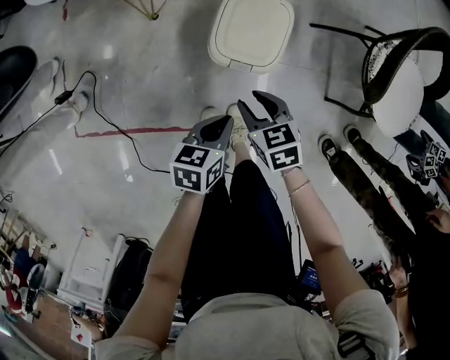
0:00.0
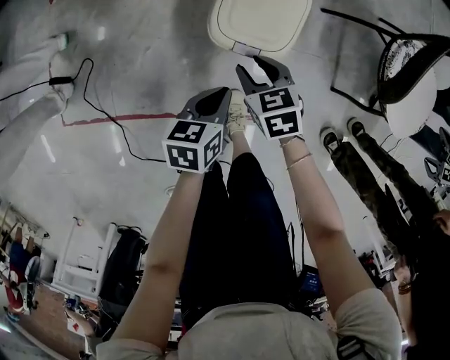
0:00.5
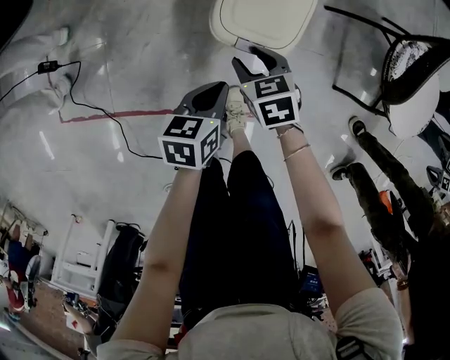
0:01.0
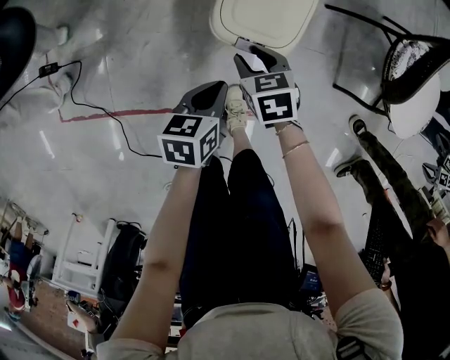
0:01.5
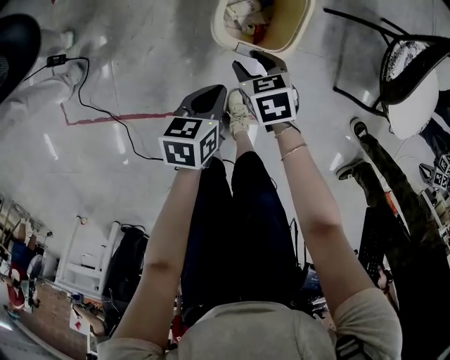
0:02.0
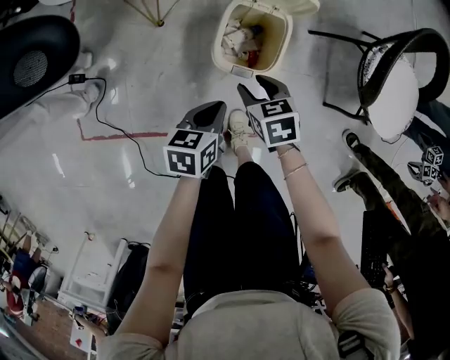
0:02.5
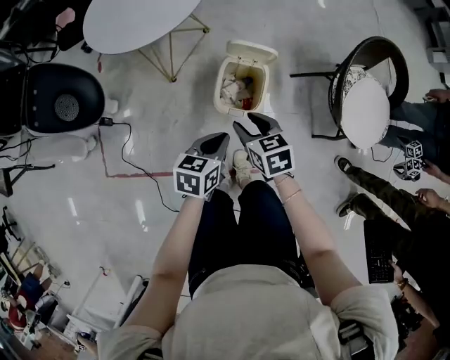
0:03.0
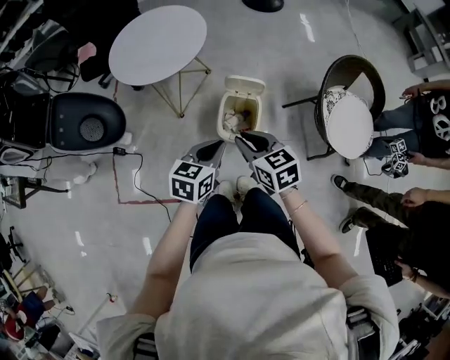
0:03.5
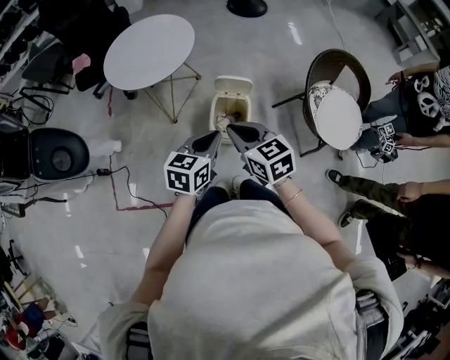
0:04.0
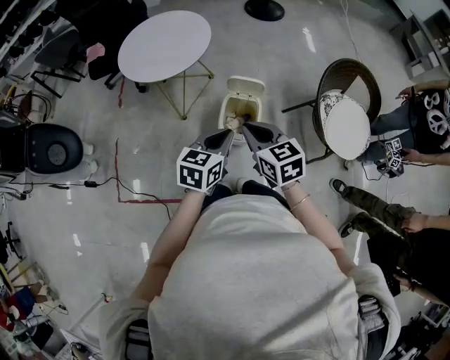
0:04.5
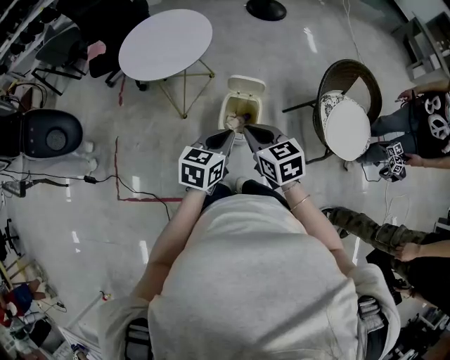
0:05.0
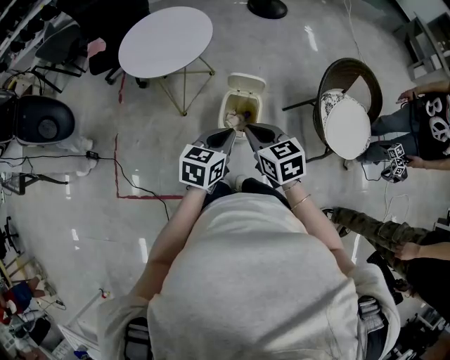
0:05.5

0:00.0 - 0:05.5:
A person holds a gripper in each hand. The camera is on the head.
0:00.0 - 0:02.0: The right gripper heads downward and forward, covering approximately 10 cm; the left gripper heads downward, covering roughly 5 cm.
0:02.0 - 0:03.5: Both grippers travel together upward, approximately 35 cm. The right gripper changes its angle by about 30 degrees, and closes up, while the left gripper rotates some 30 degrees.
0:03.5 - 0:05.5: There are only small adjustments of the grippers.

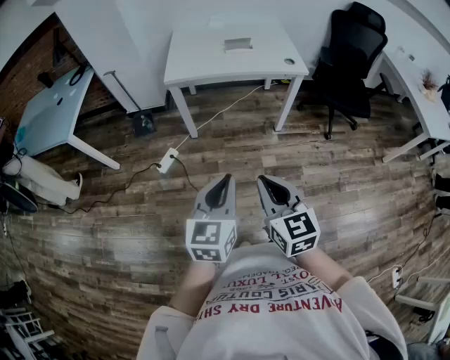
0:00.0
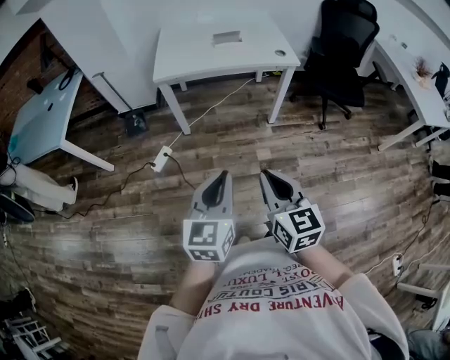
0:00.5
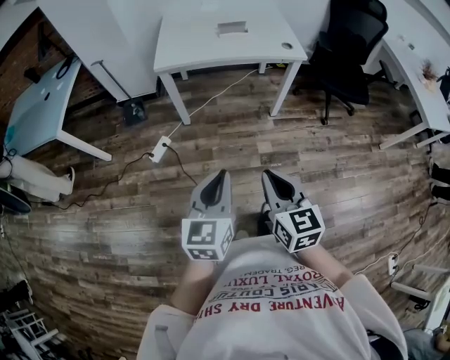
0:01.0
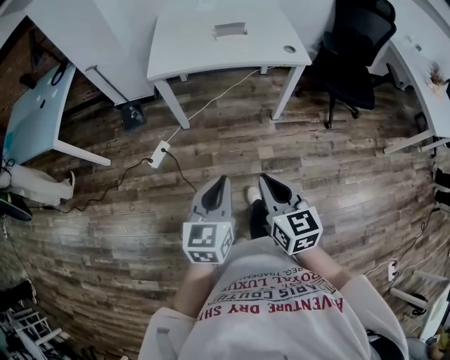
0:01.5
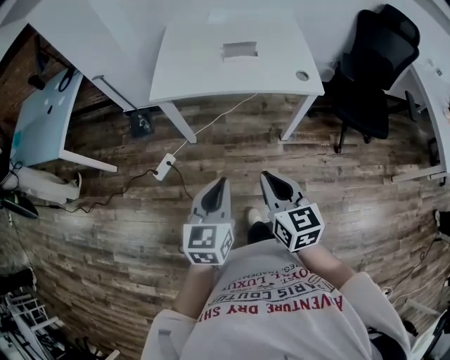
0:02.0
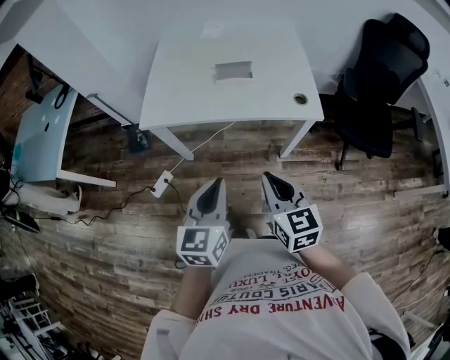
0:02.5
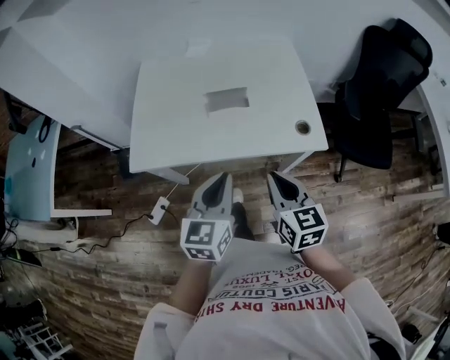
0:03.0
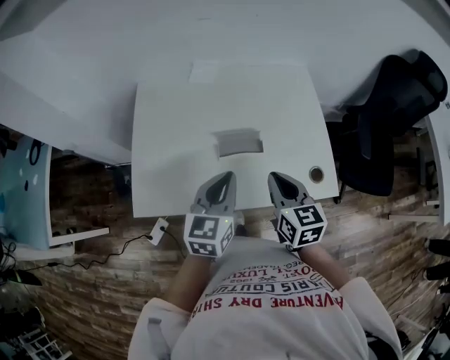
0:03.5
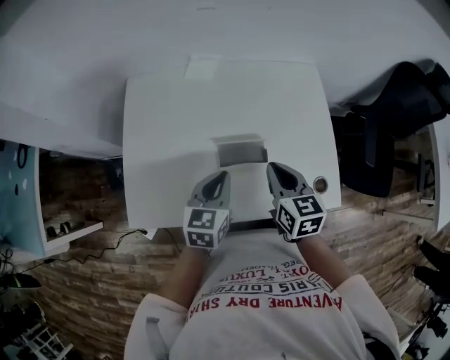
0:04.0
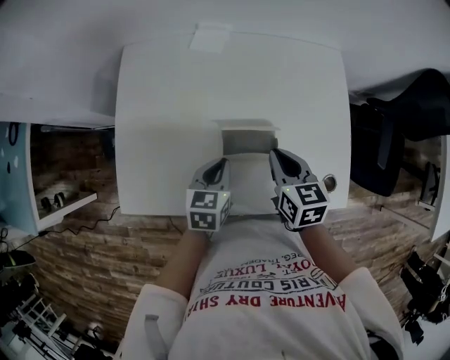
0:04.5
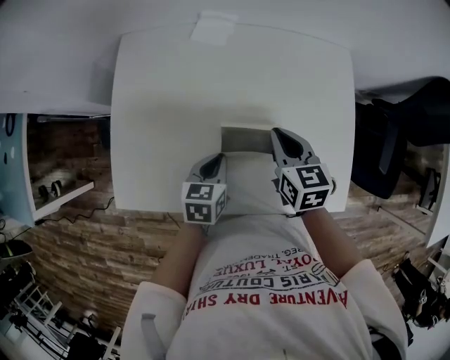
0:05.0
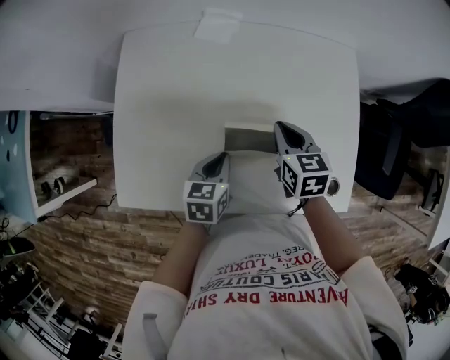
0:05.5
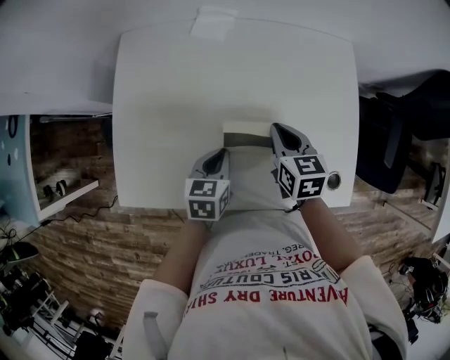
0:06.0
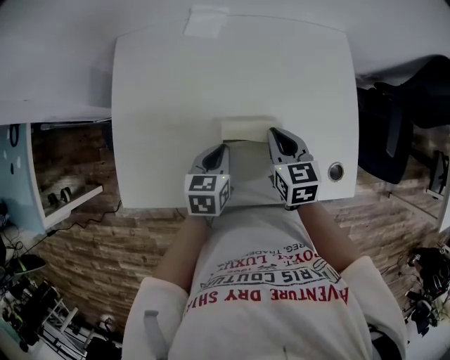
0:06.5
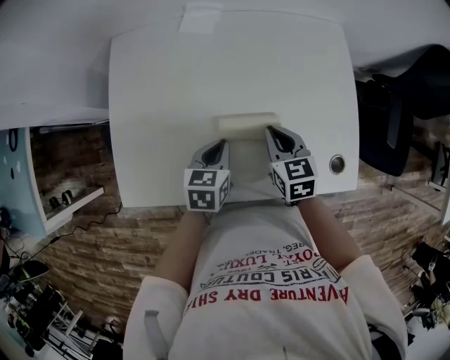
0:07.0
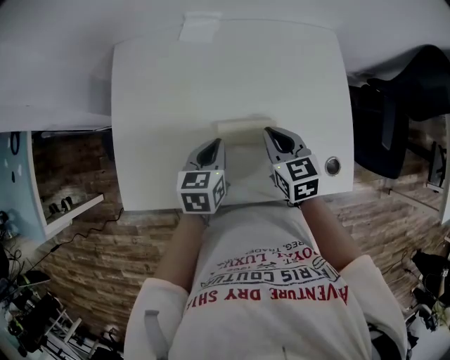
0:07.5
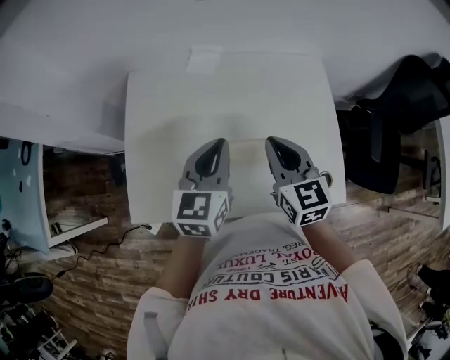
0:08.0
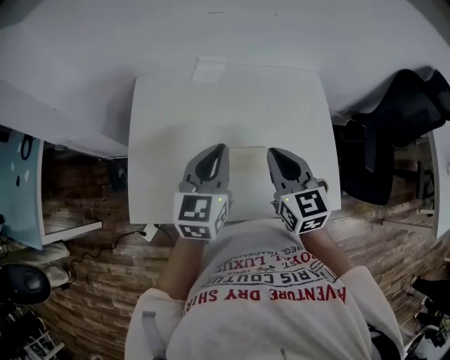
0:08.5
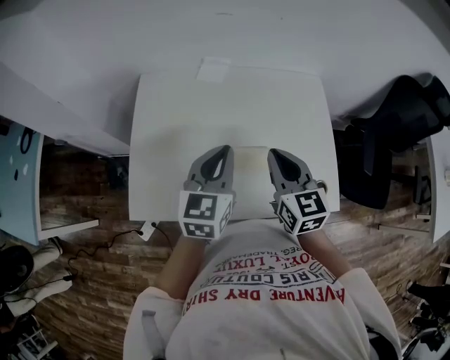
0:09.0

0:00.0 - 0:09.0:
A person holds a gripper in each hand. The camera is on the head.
0:00.0 - 0:02.0: Both grippers move forward, roughly 25 cm.
0:02.0 - 0:04.5: The pair of grippers is taken forward, about 60 cm. The left gripper changes its angle by some 20 degrees.
0:04.5 - 0:07.0: The right gripper moves downward, some 5 cm.
0:07.0 - 0:09.0: The grippers both shift upward by roughly 20 cm. The left gripper turns by approximately 30 degrees; the right gripper rotates about 20 degrees.

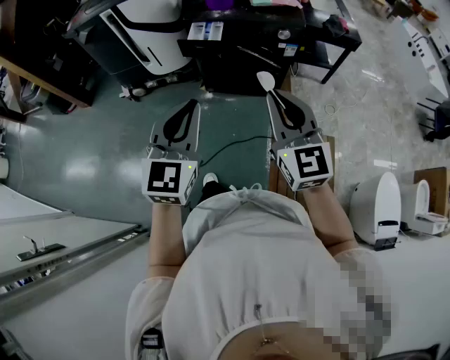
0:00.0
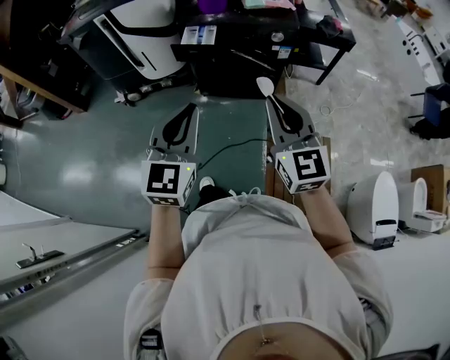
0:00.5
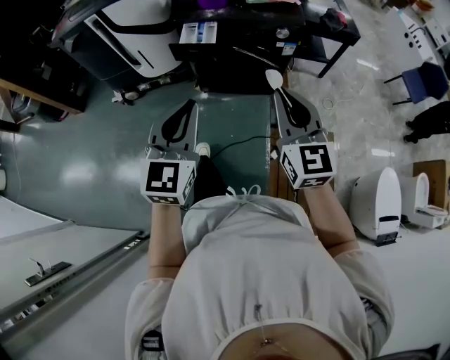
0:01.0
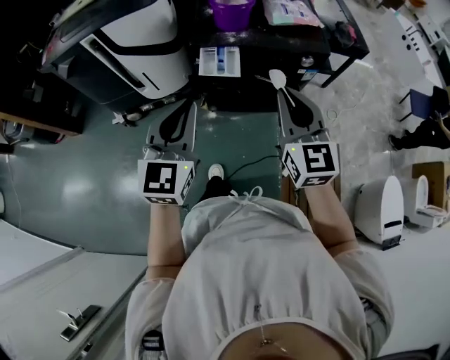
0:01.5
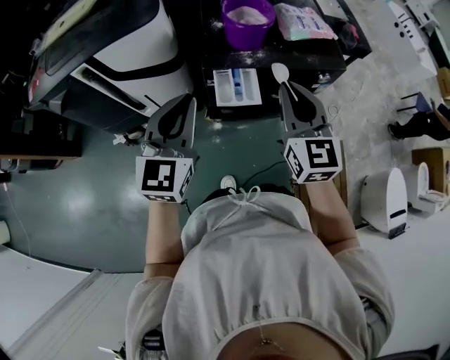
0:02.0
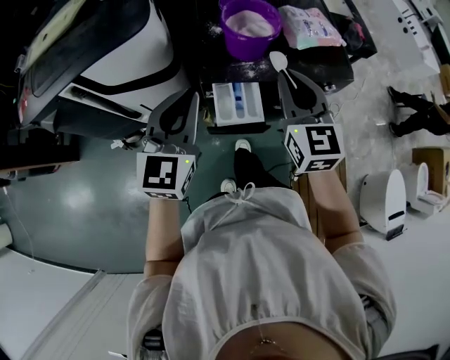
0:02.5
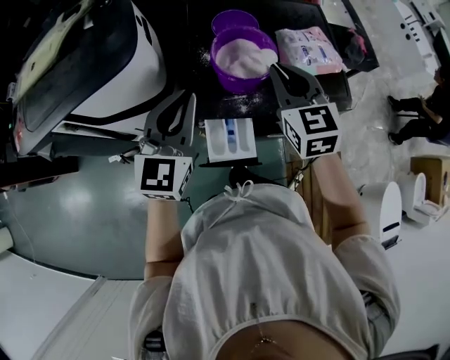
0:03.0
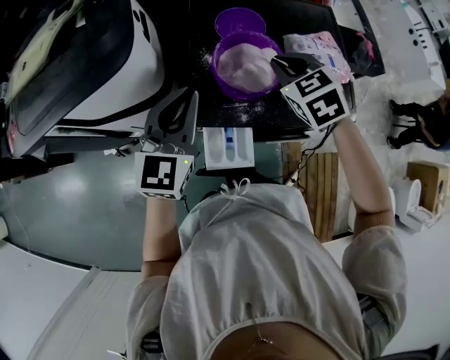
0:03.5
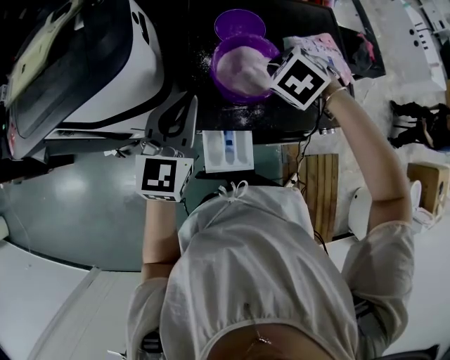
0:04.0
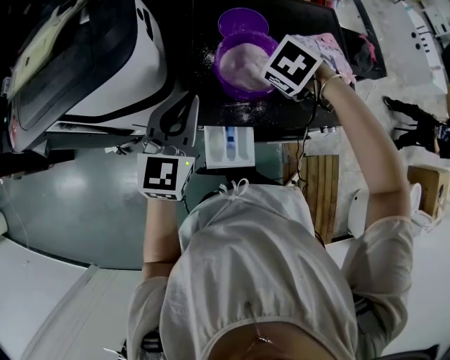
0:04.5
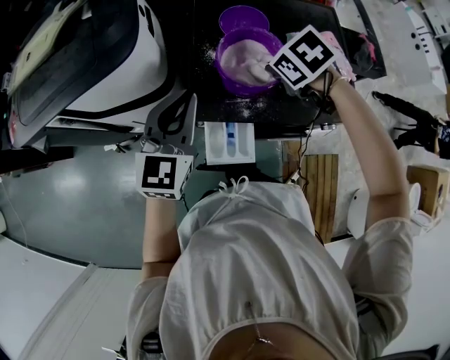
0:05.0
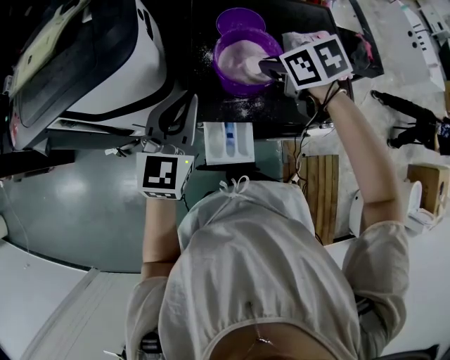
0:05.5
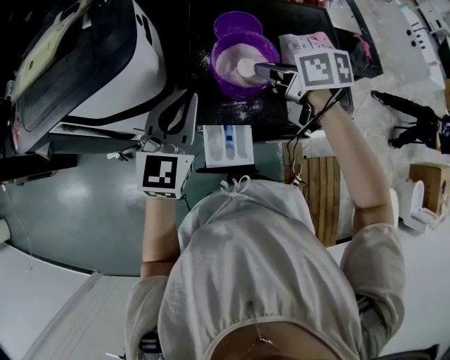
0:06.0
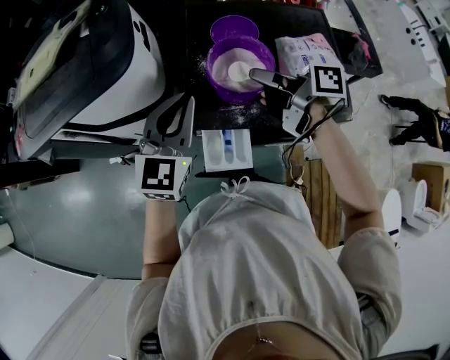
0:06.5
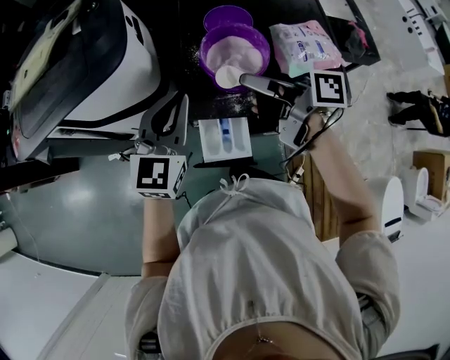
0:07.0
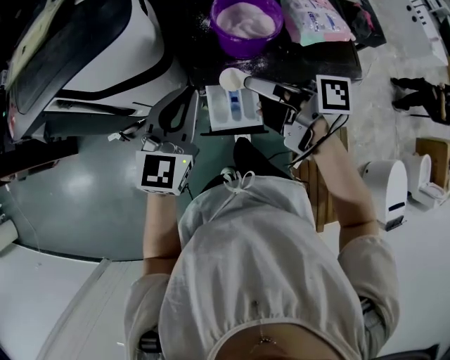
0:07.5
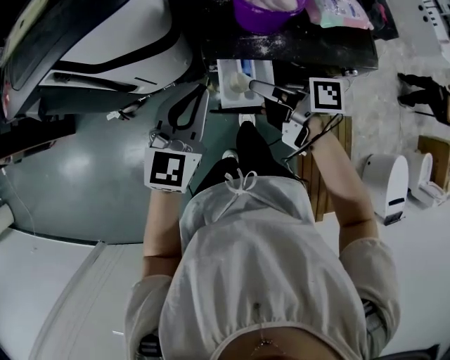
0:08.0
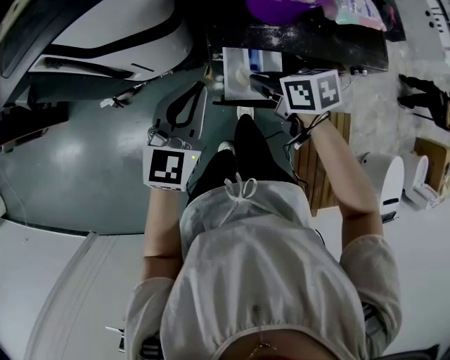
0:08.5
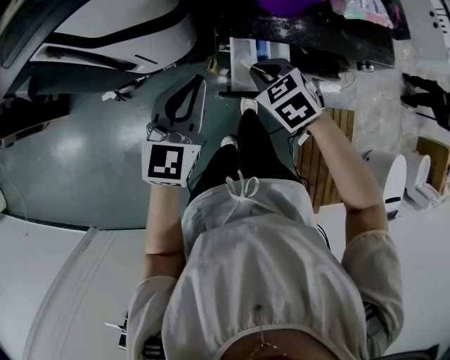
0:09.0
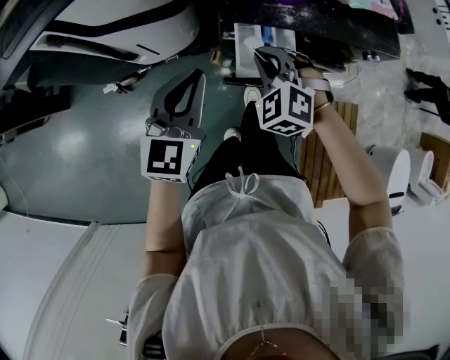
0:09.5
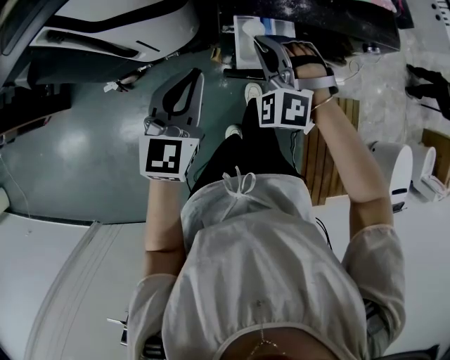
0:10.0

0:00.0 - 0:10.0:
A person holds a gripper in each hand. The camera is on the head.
0:00.0 - 0:02.0: The two grippers travel together, forward and to the left, approximately 40 cm.
0:02.0 - 0:04.0: Both grippers move forward, about 30 cm. The right gripper angles its fingers downward, by some 60 degrees.
0:04.0 - 0:06.0: The right gripper ends up about 5 cm from where it was, and twists approximately 60 degrees clockwise, seen from behind.
0:06.0 - 0:08.0: The left gripper moves backward, downward and to the left, about 15 cm, while the right gripper moves backward, to the left and downward, some 25 cm, and swivels roughly 40 degrees.
0:08.0 - 0:10.0: The right gripper goes some 5 cm to the left, and twists roughly 130 degrees counterclockwise, seen from behind, while the left gripper travels to the left and downward by roughly 10 cm.

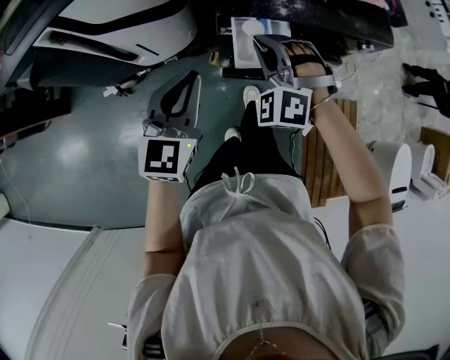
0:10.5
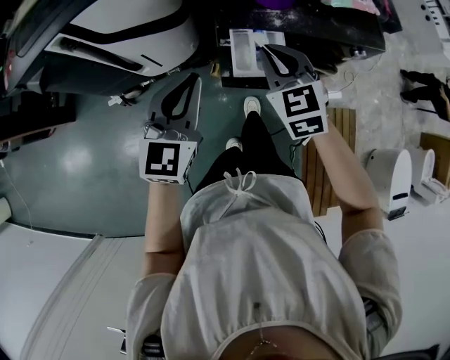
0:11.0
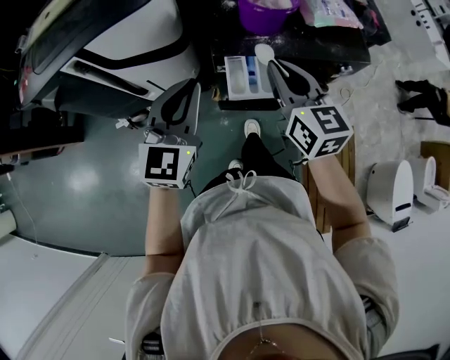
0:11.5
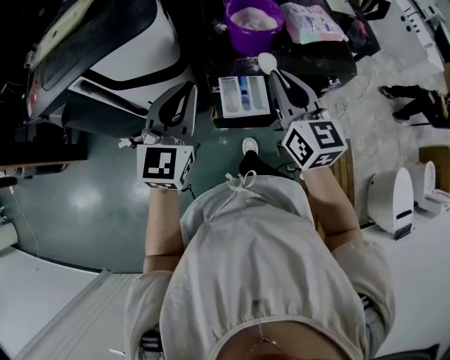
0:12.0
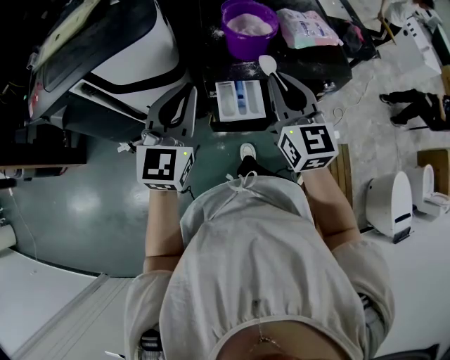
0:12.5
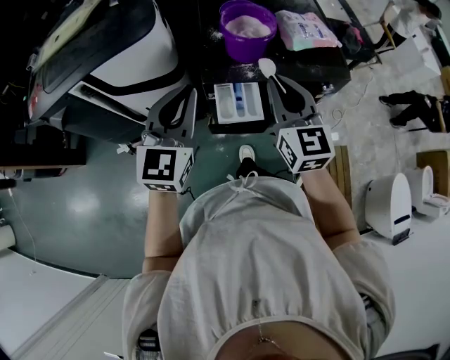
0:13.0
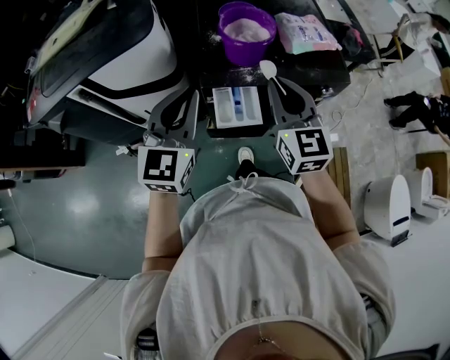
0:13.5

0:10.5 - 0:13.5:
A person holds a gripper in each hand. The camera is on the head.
0:10.5 - 0:12.0: The left gripper moves upward, approximately 15 cm; the right gripper is displaced upward and to the right by about 20 cm, and rotates around the line of its fingers by some 80 degrees, clockwise from behind.
0:12.0 - 0:13.5: There are only small adjustments of the grippers.
